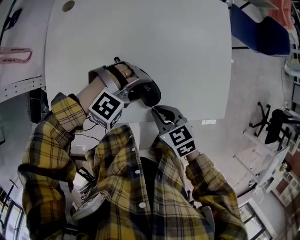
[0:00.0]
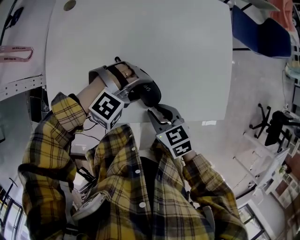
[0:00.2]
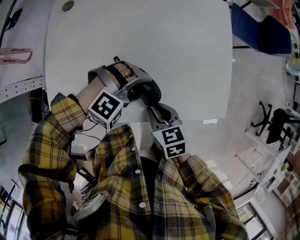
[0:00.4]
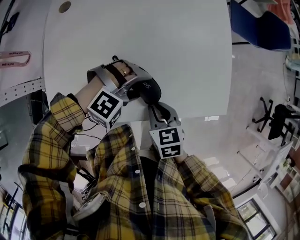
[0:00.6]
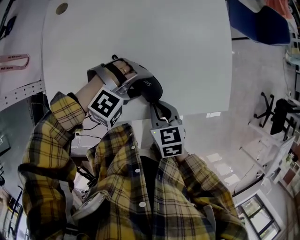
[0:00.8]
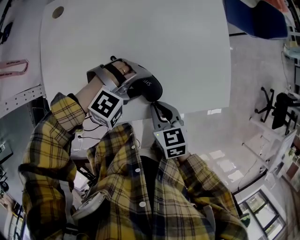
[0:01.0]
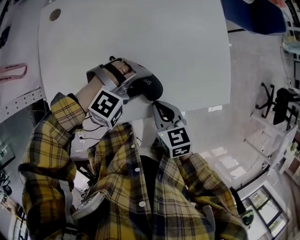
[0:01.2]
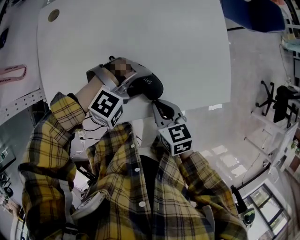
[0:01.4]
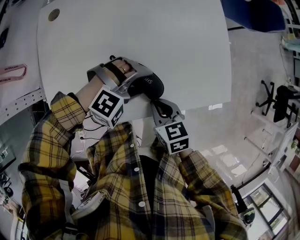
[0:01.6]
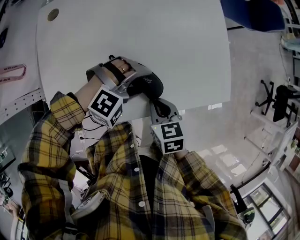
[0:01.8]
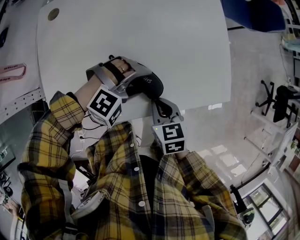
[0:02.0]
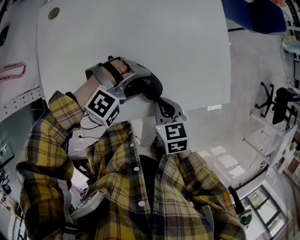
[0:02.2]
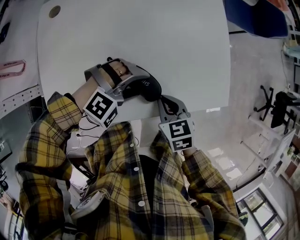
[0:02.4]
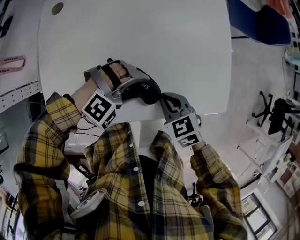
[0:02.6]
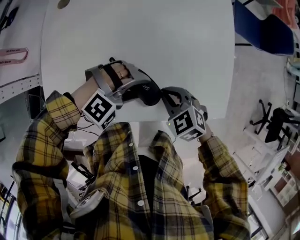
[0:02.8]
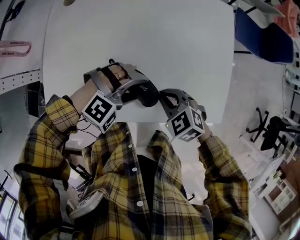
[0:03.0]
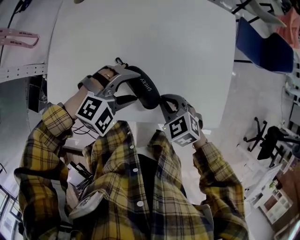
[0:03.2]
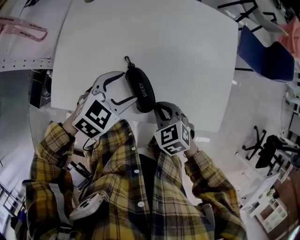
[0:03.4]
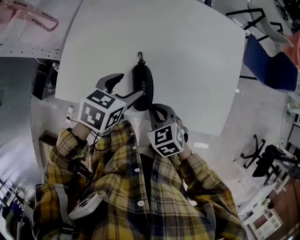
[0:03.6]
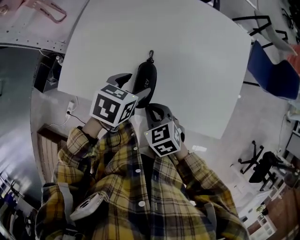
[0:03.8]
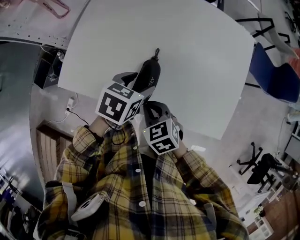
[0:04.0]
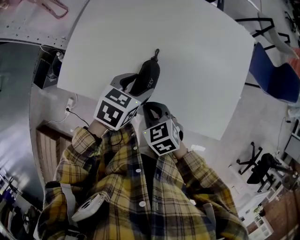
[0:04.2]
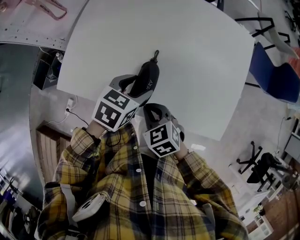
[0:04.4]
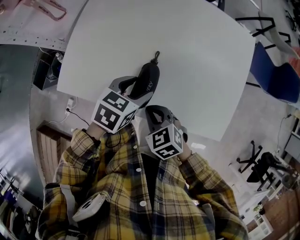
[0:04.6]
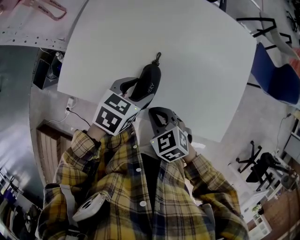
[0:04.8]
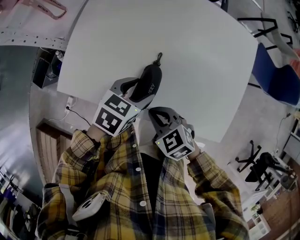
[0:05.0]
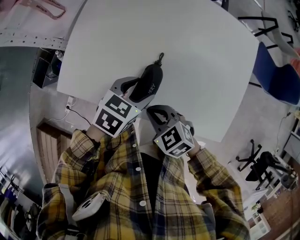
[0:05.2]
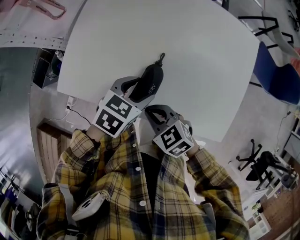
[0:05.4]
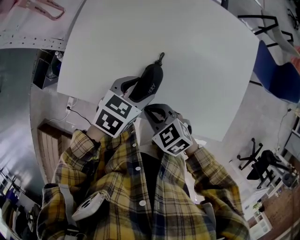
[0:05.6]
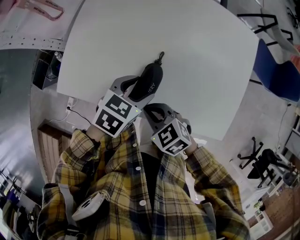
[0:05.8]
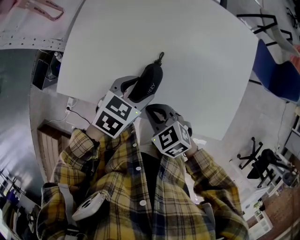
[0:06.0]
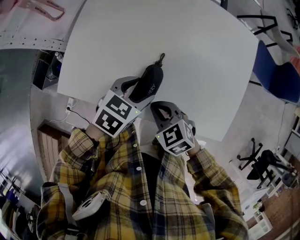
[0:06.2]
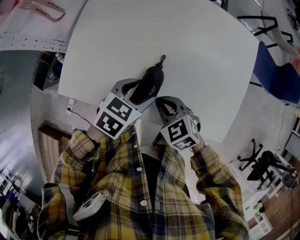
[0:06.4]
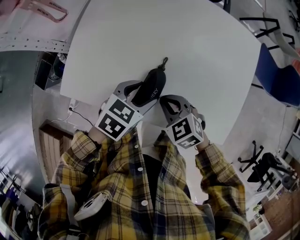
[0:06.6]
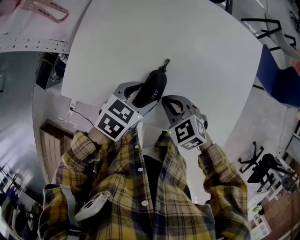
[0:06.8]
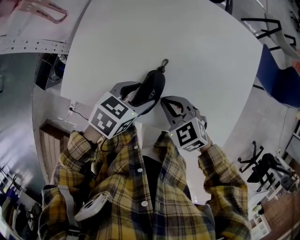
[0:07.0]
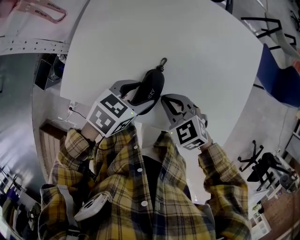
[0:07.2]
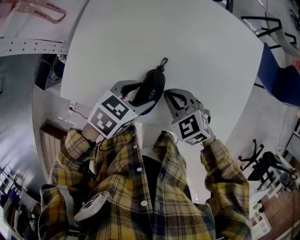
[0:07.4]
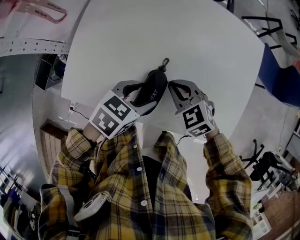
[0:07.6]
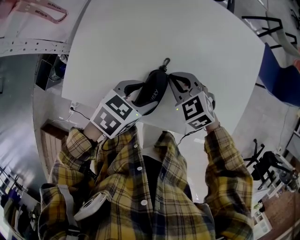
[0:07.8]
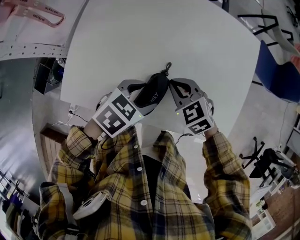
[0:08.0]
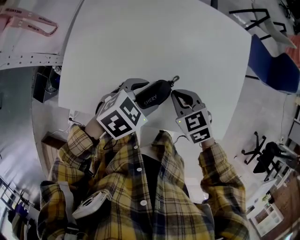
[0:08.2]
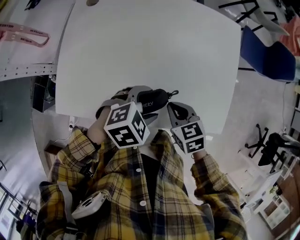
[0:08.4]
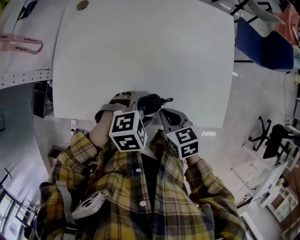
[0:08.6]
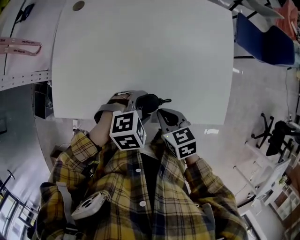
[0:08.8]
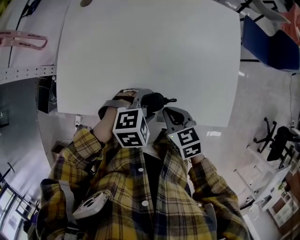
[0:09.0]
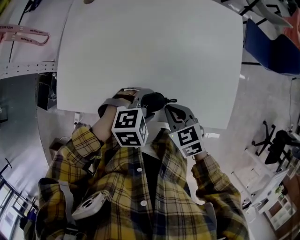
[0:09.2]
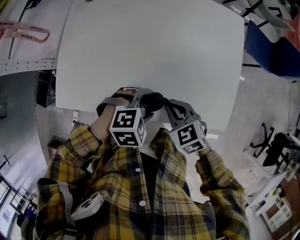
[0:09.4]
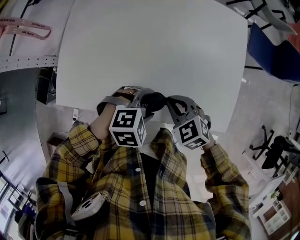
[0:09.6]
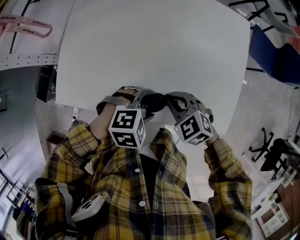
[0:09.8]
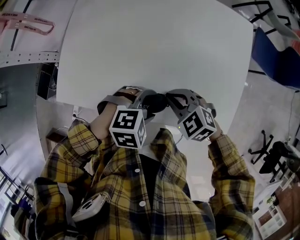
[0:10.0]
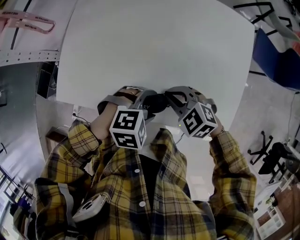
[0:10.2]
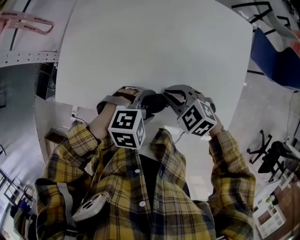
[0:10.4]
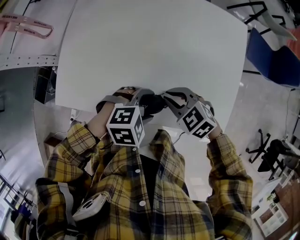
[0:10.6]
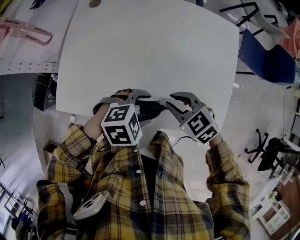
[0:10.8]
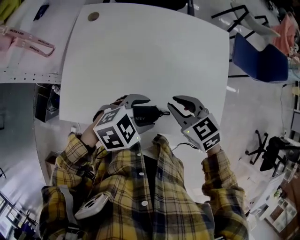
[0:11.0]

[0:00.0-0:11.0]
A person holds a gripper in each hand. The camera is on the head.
0:00.0 to 0:01.6: The right gripper turns by roughly 20 degrees.
0:01.6 to 0:03.2: The left gripper changes its angle by roughly 30 degrees. Meanwhile the right gripper ends up some 5 cm from where it was, and rotates around the line of its fingers by about 40 degrees, counterclockwise from behind.
0:03.2 to 0:04.8: The left gripper shifts approximately 5 cm to the left, and rotates around the line of its fingers by about 70 degrees, counterclockwise from behind. Meanwhile the right gripper shifts approximately 10 cm to the left and backward.
0:04.8 to 0:06.2: The grippers make only small movements.
0:06.2 to 0:07.8: The right gripper is displaced forward by some 15 cm.
0:07.8 to 0:09.4: The right gripper shifts roughly 15 cm to the right and backward; the left gripper moves to the right, approximately 10 cm, and rotates around the line of its fingers by some 50 degrees, clockwise from behind.
0:09.4 to 0:11.0: Both grippers travel together upward, approximately 10 cm. The left gripper changes its angle by about 20 degrees.

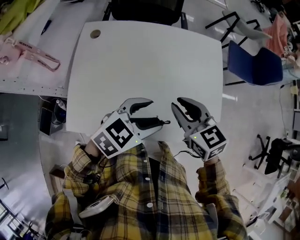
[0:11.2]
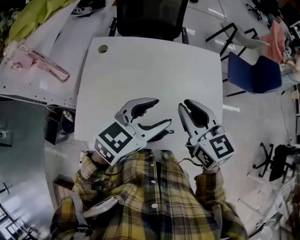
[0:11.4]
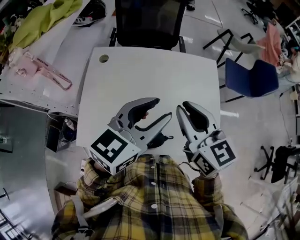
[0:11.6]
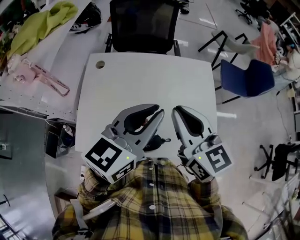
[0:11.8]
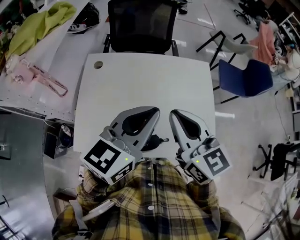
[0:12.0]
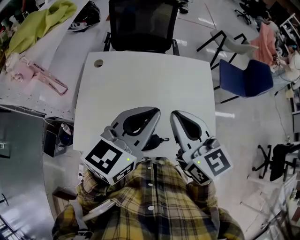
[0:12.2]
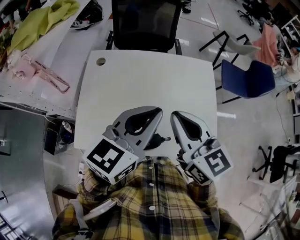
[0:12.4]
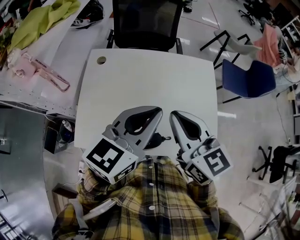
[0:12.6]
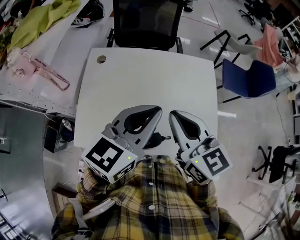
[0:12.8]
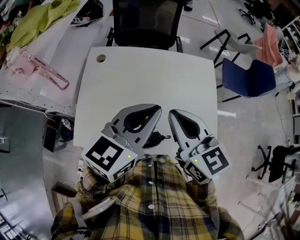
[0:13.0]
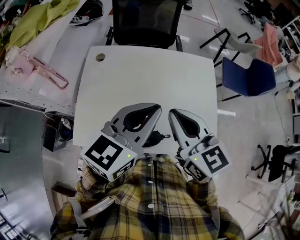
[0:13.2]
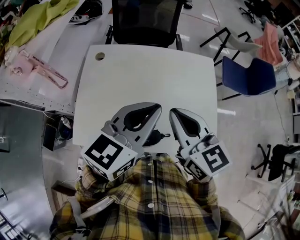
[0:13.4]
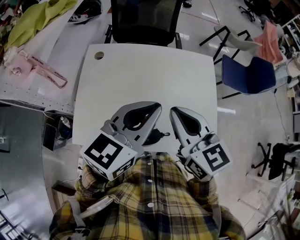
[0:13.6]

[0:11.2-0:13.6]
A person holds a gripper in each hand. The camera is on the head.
0:11.2 to 0:12.4: The grippers both shift upward by some 15 cm. The right gripper turns by roughly 20 degrees; the left gripper turns by about 30 degrees, and closes.
0:12.4 to 0:13.6: The grippers move only a little.
